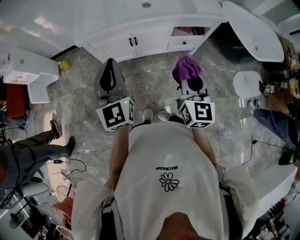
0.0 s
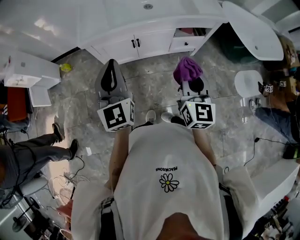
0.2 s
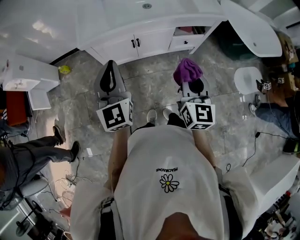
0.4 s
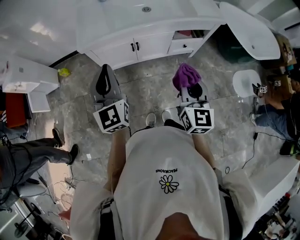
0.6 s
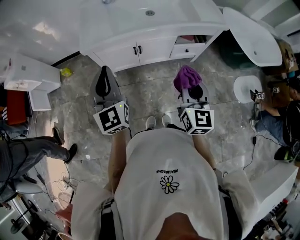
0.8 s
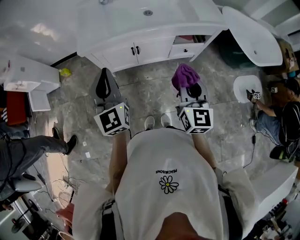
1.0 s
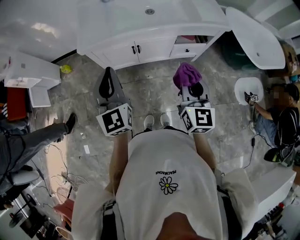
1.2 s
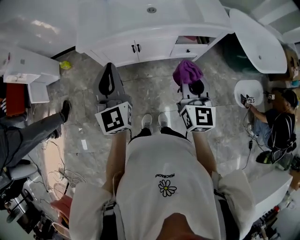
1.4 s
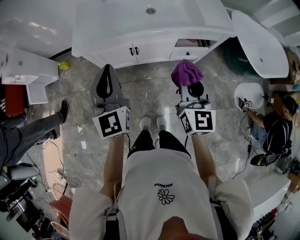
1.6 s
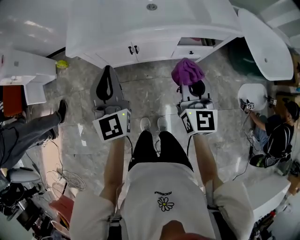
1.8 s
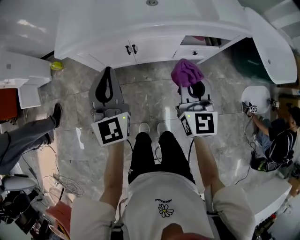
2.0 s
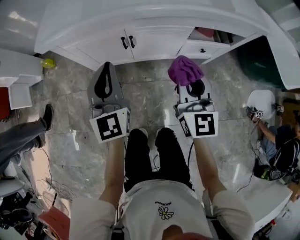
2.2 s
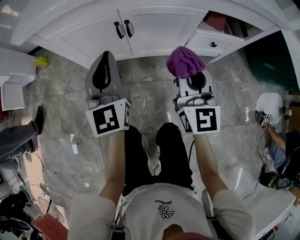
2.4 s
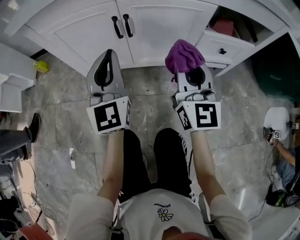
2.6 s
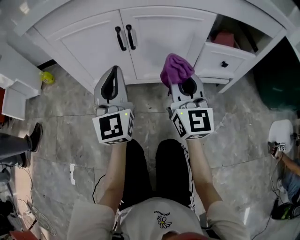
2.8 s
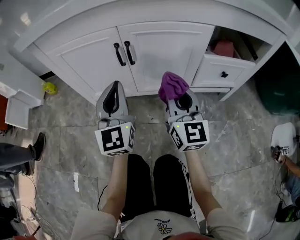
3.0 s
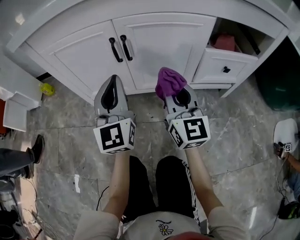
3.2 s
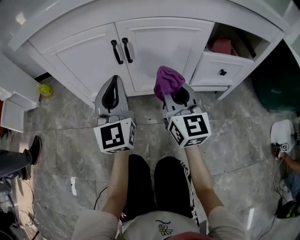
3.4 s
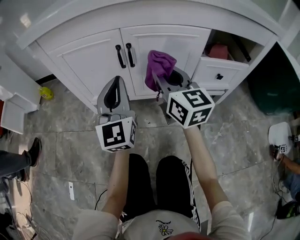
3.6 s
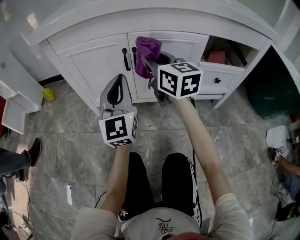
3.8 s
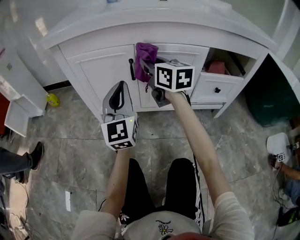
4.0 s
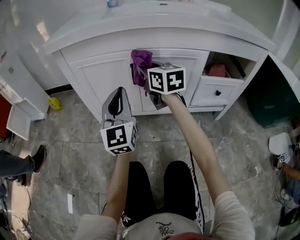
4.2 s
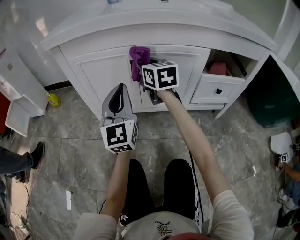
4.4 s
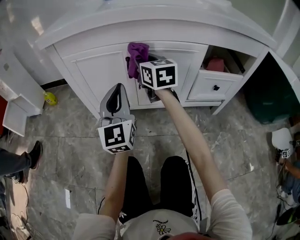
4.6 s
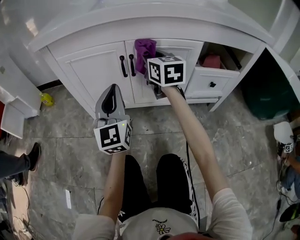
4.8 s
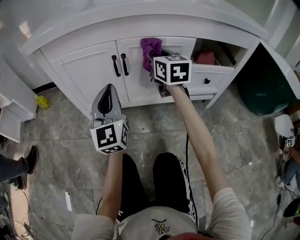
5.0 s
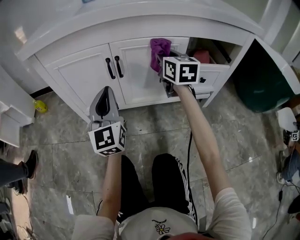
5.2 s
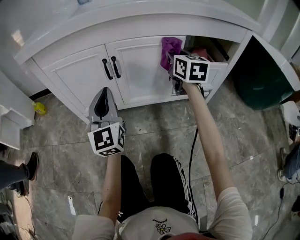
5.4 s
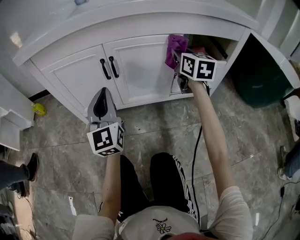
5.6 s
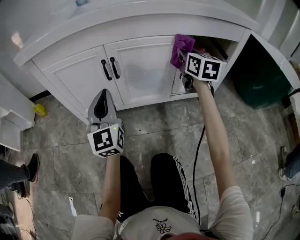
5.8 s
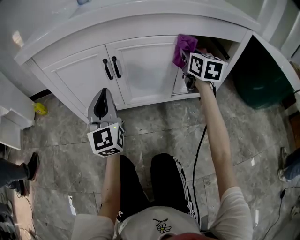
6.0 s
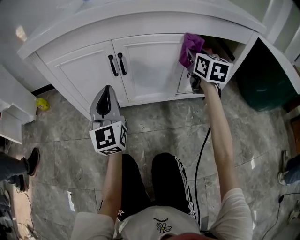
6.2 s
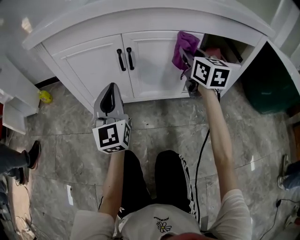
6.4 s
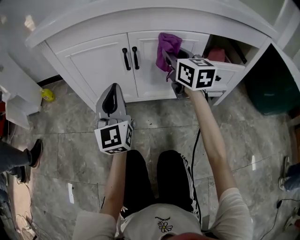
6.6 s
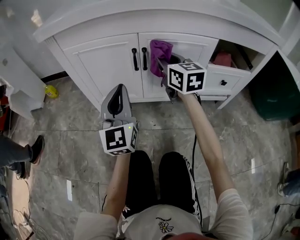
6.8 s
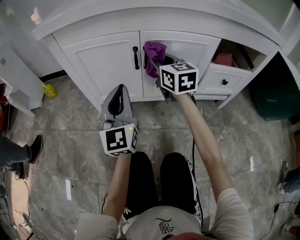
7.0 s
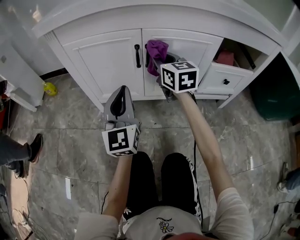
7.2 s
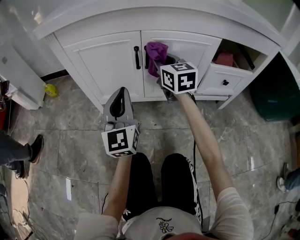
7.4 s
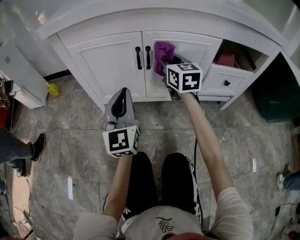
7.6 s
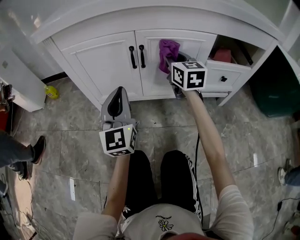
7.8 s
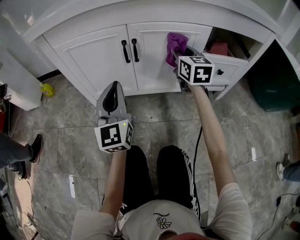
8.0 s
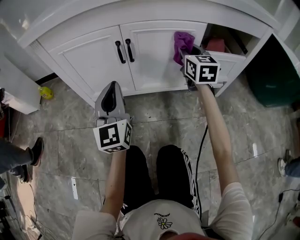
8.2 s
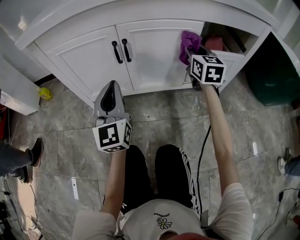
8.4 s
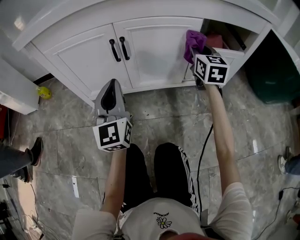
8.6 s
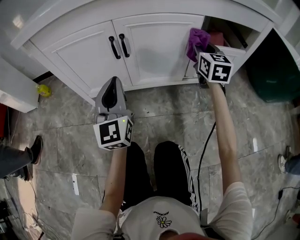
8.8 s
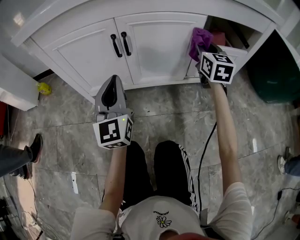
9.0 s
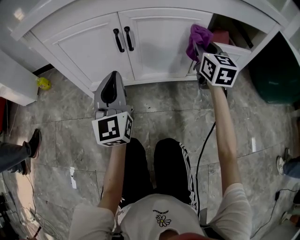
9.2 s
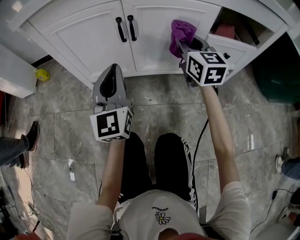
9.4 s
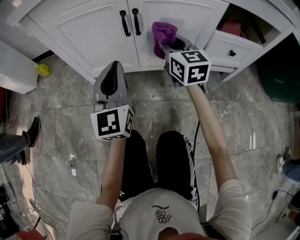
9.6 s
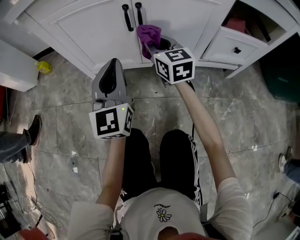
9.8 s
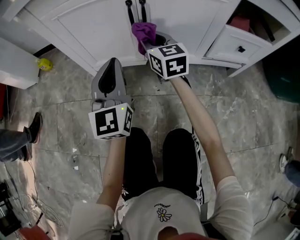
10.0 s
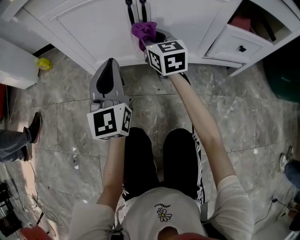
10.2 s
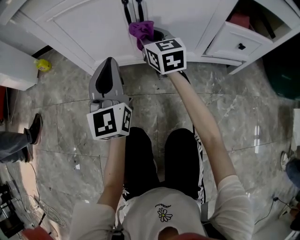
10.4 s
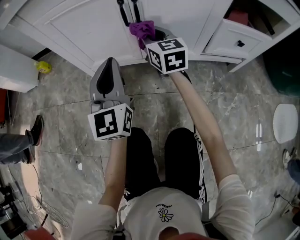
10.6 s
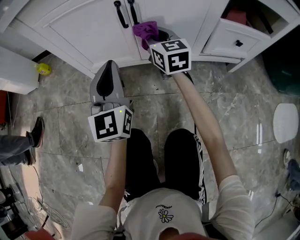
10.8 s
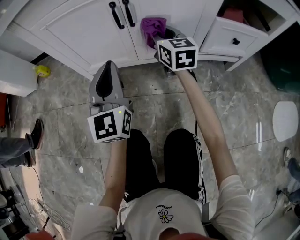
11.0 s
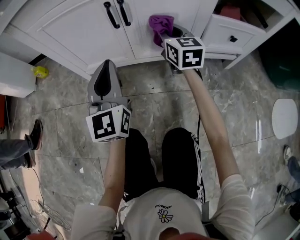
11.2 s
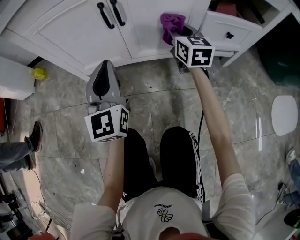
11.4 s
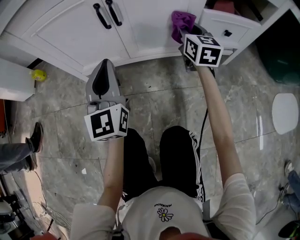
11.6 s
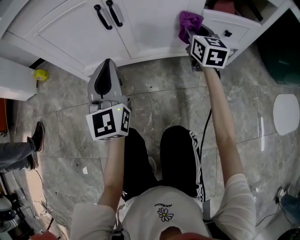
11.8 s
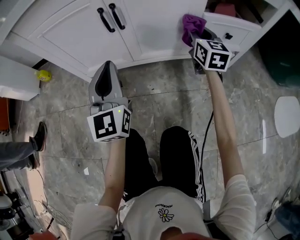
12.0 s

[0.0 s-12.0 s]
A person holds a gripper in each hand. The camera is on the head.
0.0 to 1.6 s: The grippers both shift forward by about 10 cm.
1.6 to 3.0 s: The two grippers go roughly 50 cm downward.
3.0 to 4.4 s: The left gripper moves some 5 cm. The right gripper is displaced forward, to the left and upward by approximately 20 cm, and turns by about 20 degrees.
4.4 to 6.0 s: The right gripper shifts about 25 cm to the right, and changes its angle by about 20 degrees.
6.0 to 7.6 s: The right gripper travels to the left by some 20 cm. The left gripper moves some 5 cm.
7.6 to 9.0 s: The right gripper shifts some 20 cm to the right.
9.0 to 10.4 s: The right gripper goes some 25 cm to the left, and rotates about 20 degrees; the left gripper is displaced to the left by roughly 5 cm.
10.4 to 12.0 s: The left gripper travels to the right by roughly 5 cm, while the right gripper heads to the right, covering some 25 cm, and turns by some 20 degrees.

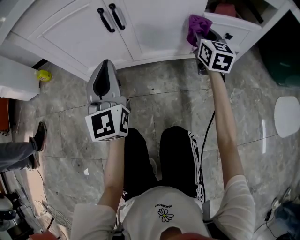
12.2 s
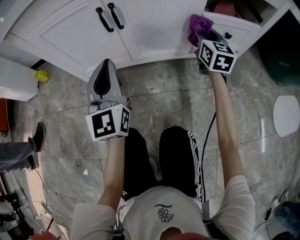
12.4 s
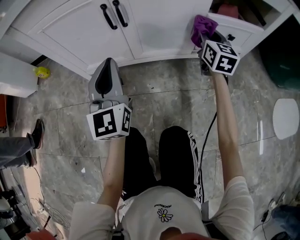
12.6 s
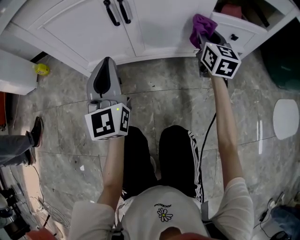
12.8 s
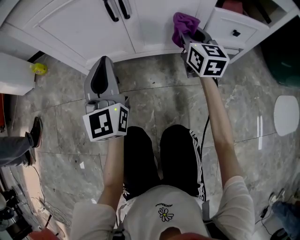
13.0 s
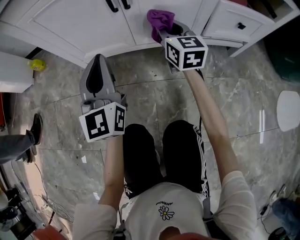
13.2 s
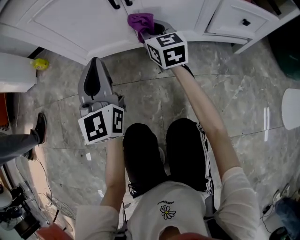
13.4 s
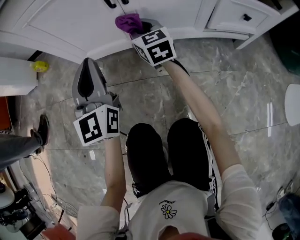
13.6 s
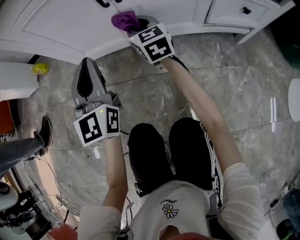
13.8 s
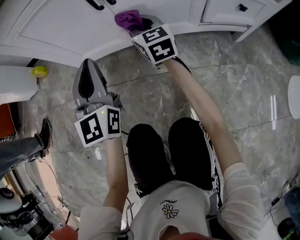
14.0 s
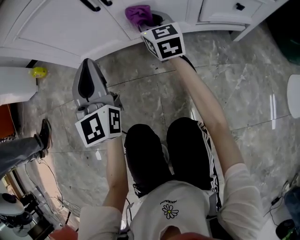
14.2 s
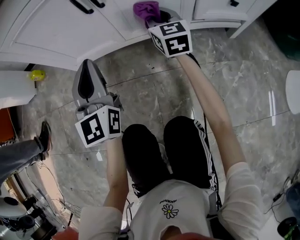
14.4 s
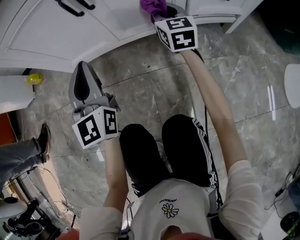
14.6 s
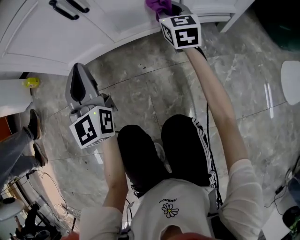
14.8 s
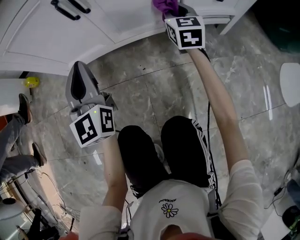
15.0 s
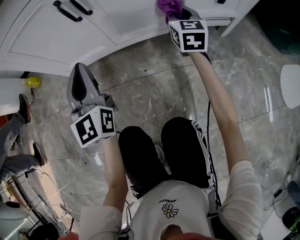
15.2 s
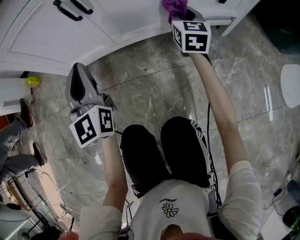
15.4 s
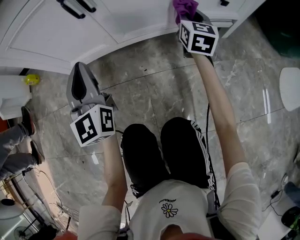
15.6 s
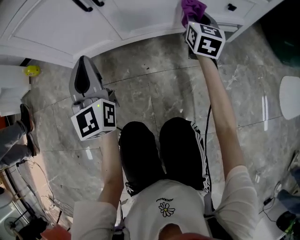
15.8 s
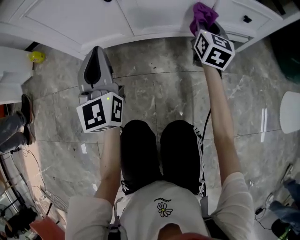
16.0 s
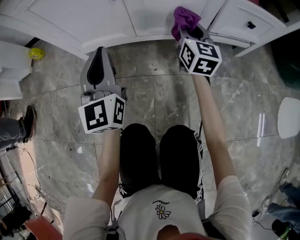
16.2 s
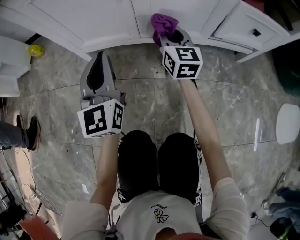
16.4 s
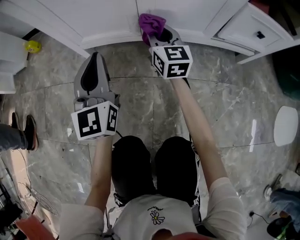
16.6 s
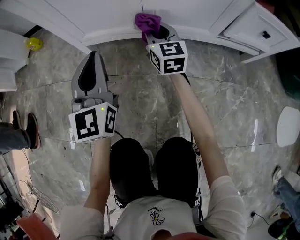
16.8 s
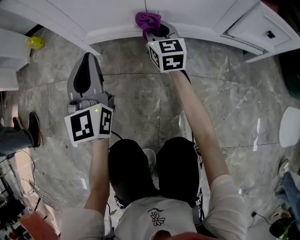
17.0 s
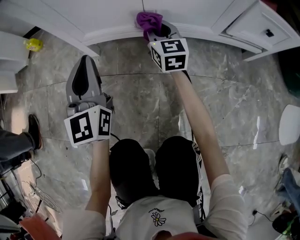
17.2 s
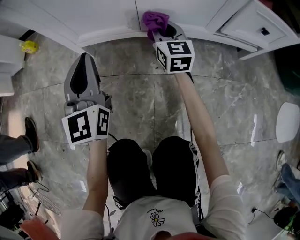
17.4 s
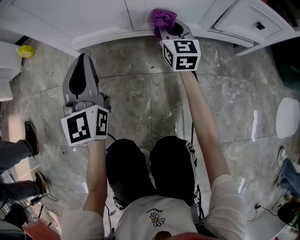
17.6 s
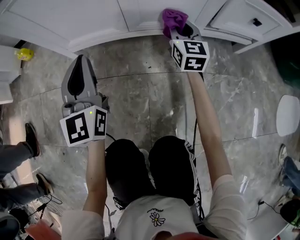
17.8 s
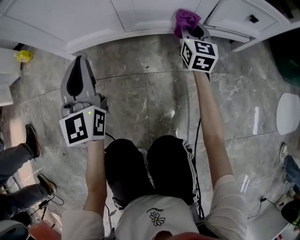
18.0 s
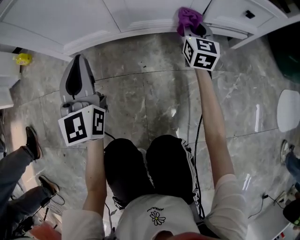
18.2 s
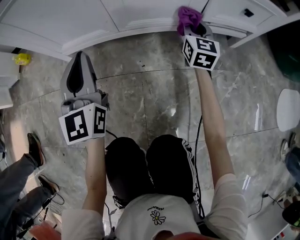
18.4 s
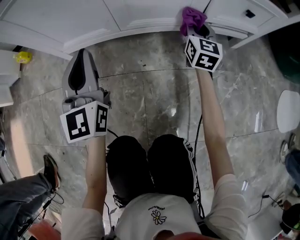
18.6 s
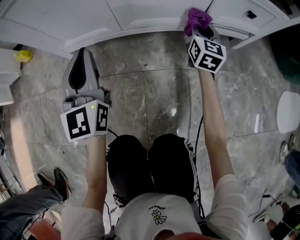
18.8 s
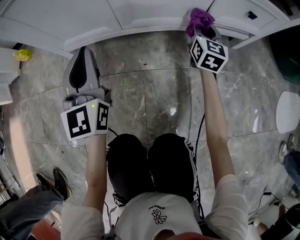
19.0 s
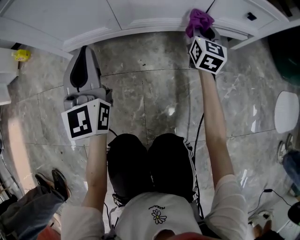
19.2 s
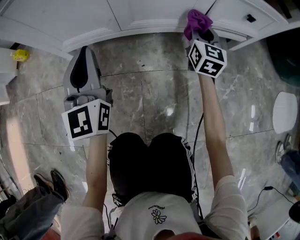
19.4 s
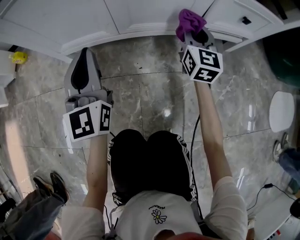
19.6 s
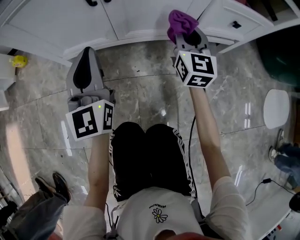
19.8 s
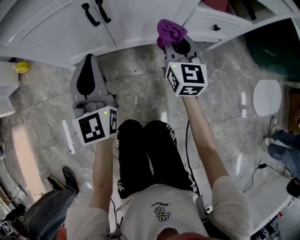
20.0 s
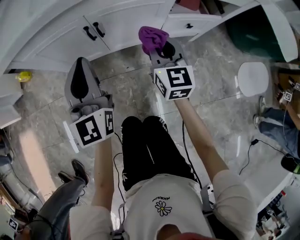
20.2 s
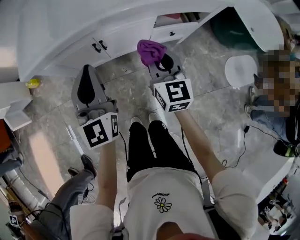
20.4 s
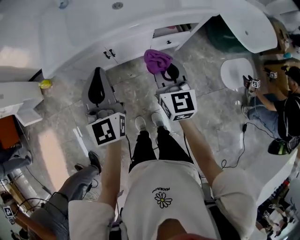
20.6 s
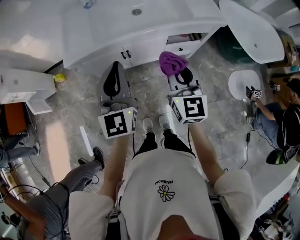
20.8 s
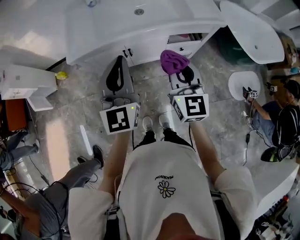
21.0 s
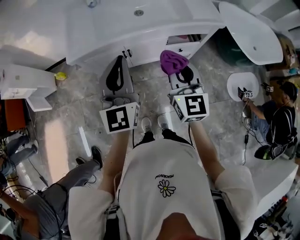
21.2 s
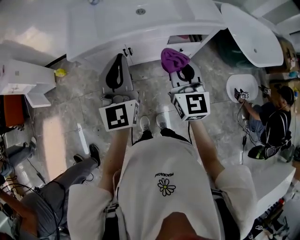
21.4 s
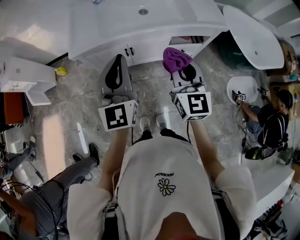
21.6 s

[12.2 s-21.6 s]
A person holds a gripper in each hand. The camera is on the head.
12.2 to 13.8 s: The right gripper shifts about 25 cm to the left, and swivels roughly 20 degrees, while the left gripper moves to the left, some 5 cm.
13.8 to 15.4 s: The right gripper shifts about 25 cm to the right, and turns by about 30 degrees.
15.4 to 17.0 s: The left gripper shifts about 10 cm to the left and downward. The right gripper shifts approximately 25 cm to the left, and rotates approximately 30 degrees.
17.0 to 18.4 s: The right gripper moves to the right, approximately 25 cm, and rotates about 20 degrees. Meanwhile the left gripper heads to the right, covering roughly 10 cm.
18.4 to 20.0 s: Both grippers move upward, roughly 15 cm.
20.0 to 21.6 s: The two grippers go approximately 50 cm upward.

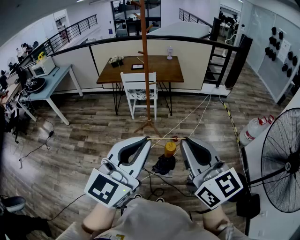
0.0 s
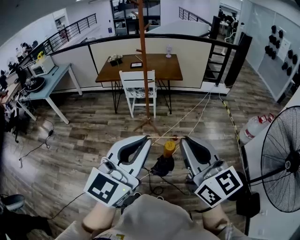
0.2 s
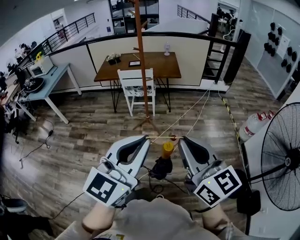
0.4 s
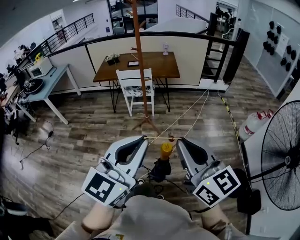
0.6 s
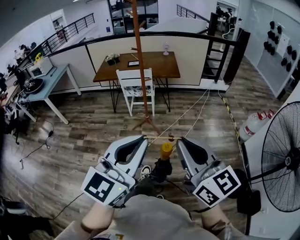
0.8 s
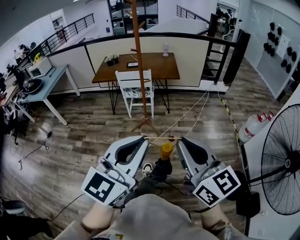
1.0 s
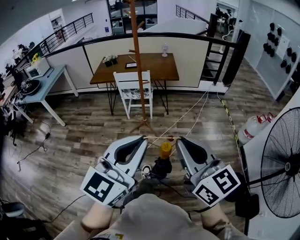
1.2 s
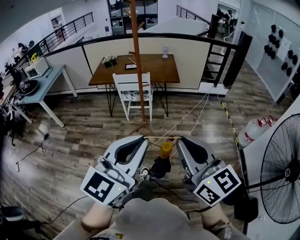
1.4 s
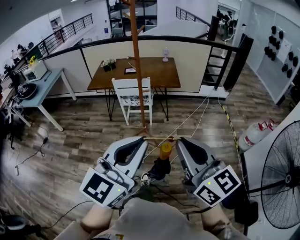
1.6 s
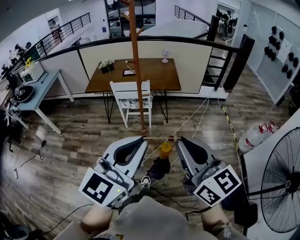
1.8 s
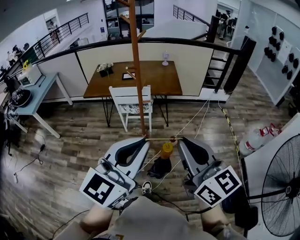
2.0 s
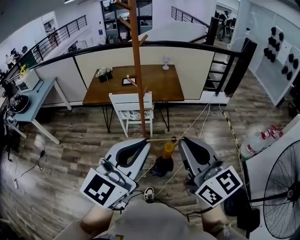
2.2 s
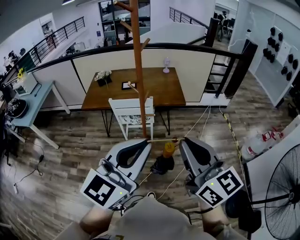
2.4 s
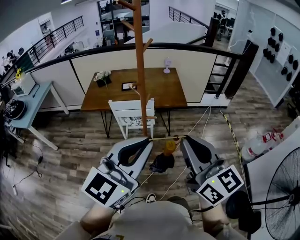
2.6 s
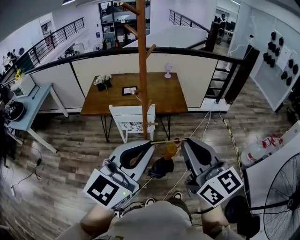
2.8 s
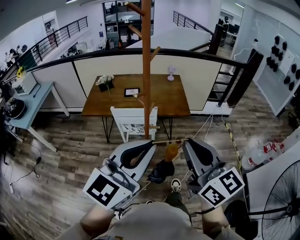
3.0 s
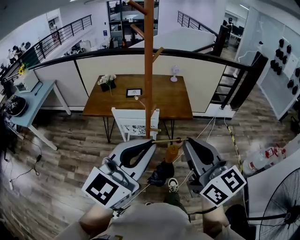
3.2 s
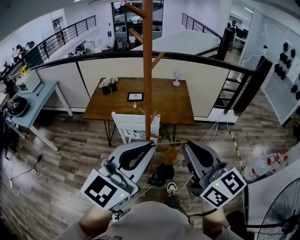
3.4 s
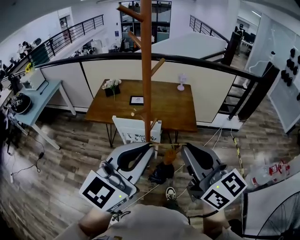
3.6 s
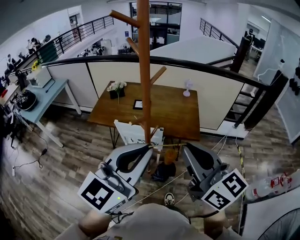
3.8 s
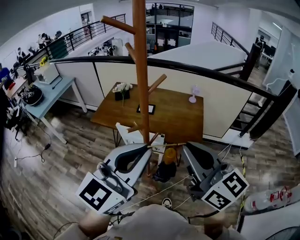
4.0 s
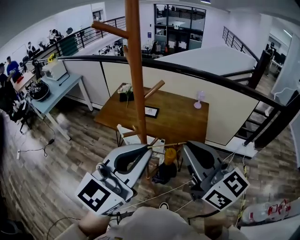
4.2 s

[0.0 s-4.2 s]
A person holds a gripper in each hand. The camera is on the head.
0.0 to 1.4 s: The two grippers go approximately 10 cm forward.
1.4 to 2.8 s: The two grippers go approximately 35 cm forward.
2.8 to 4.2 s: Both grippers move forward, about 25 cm. The right gripper swivels roughly 30 degrees, while the left gripper changes its angle by some 20 degrees.
